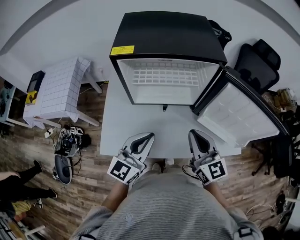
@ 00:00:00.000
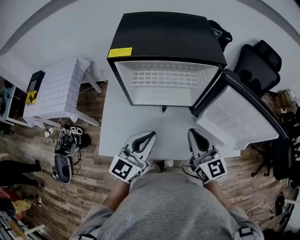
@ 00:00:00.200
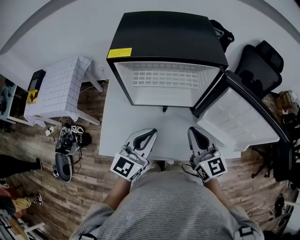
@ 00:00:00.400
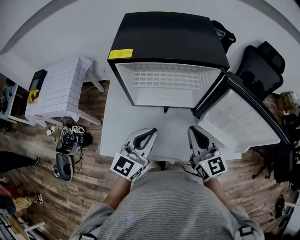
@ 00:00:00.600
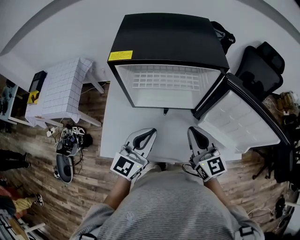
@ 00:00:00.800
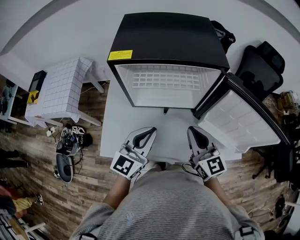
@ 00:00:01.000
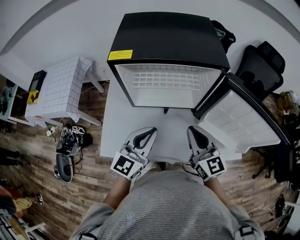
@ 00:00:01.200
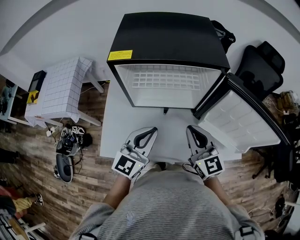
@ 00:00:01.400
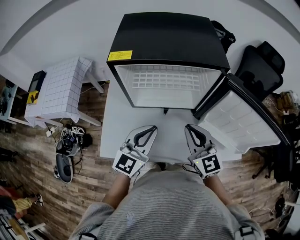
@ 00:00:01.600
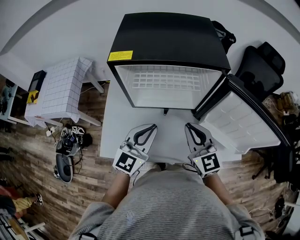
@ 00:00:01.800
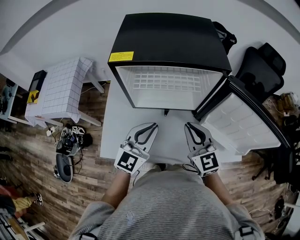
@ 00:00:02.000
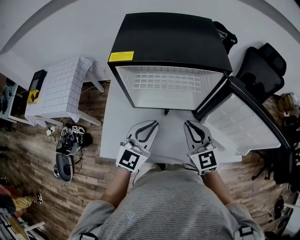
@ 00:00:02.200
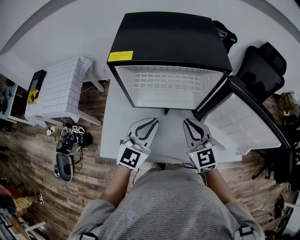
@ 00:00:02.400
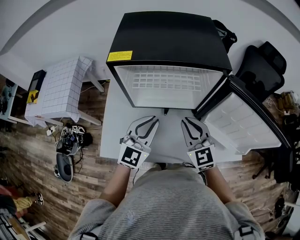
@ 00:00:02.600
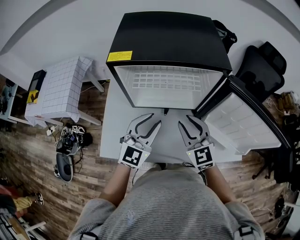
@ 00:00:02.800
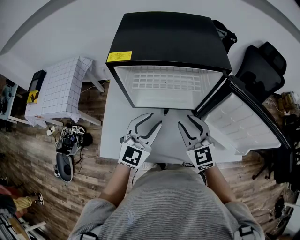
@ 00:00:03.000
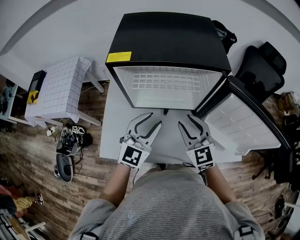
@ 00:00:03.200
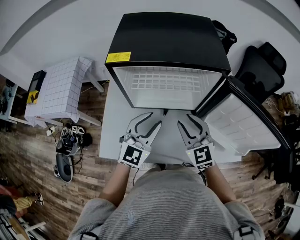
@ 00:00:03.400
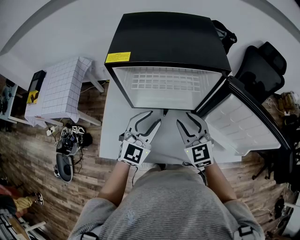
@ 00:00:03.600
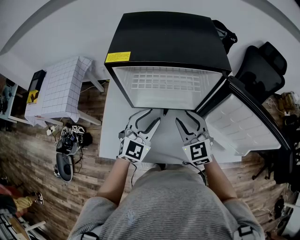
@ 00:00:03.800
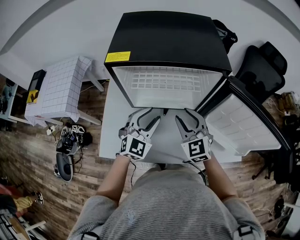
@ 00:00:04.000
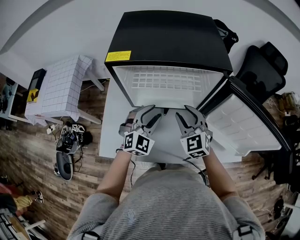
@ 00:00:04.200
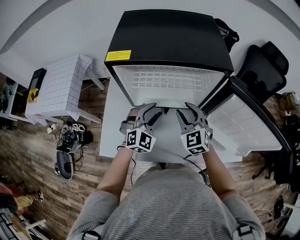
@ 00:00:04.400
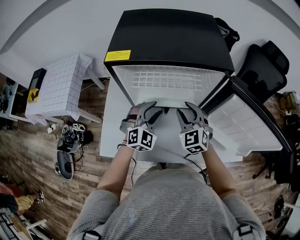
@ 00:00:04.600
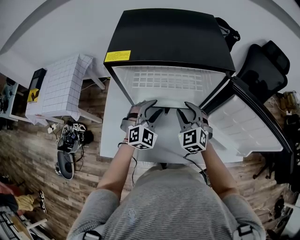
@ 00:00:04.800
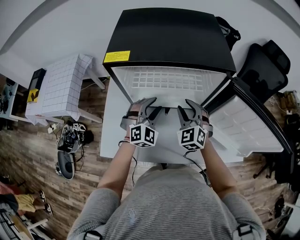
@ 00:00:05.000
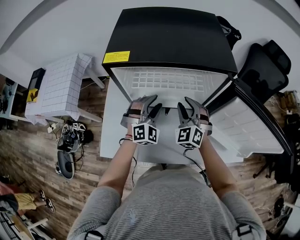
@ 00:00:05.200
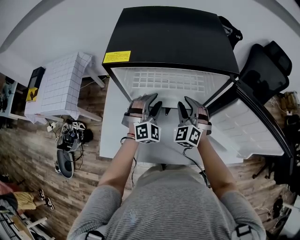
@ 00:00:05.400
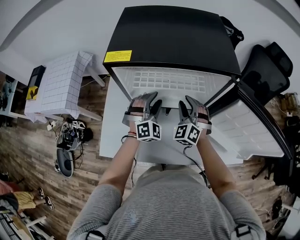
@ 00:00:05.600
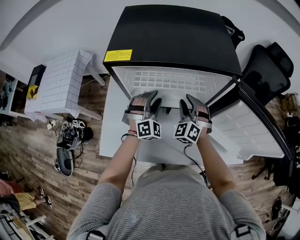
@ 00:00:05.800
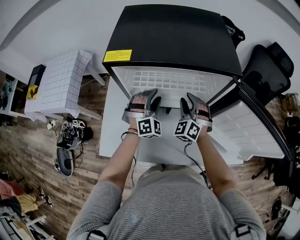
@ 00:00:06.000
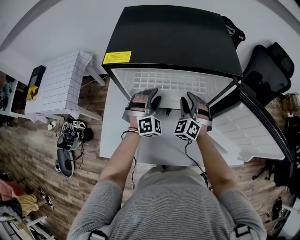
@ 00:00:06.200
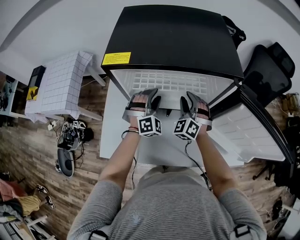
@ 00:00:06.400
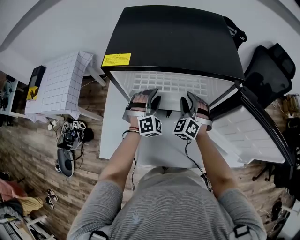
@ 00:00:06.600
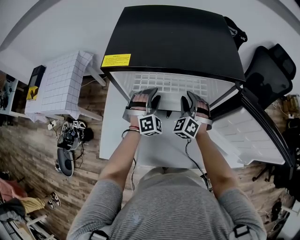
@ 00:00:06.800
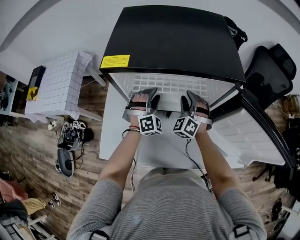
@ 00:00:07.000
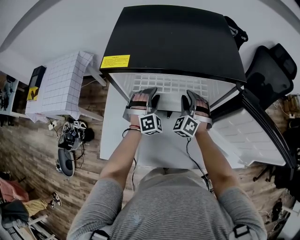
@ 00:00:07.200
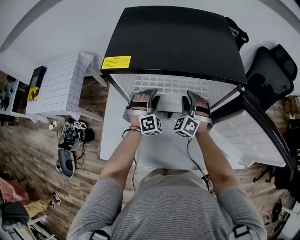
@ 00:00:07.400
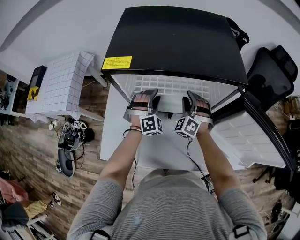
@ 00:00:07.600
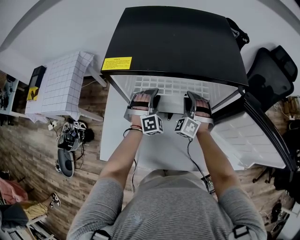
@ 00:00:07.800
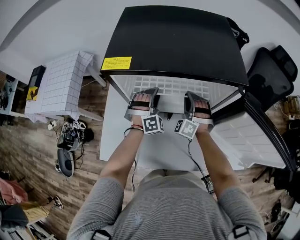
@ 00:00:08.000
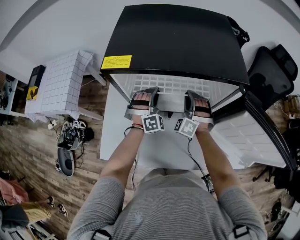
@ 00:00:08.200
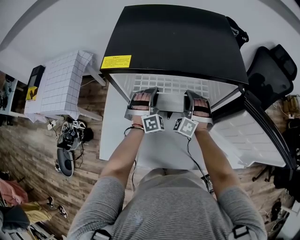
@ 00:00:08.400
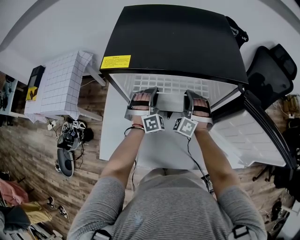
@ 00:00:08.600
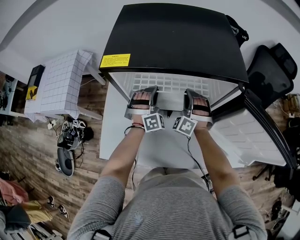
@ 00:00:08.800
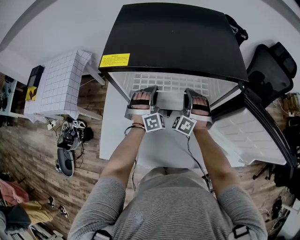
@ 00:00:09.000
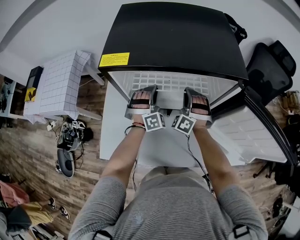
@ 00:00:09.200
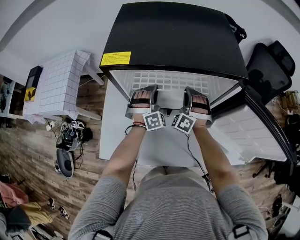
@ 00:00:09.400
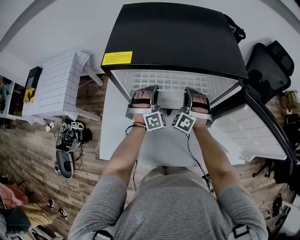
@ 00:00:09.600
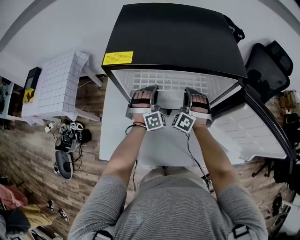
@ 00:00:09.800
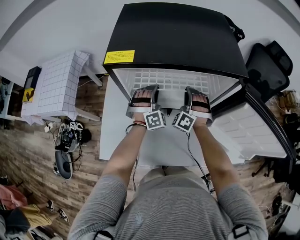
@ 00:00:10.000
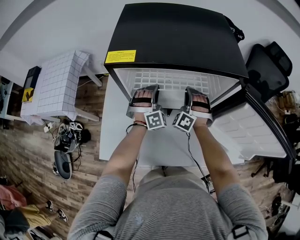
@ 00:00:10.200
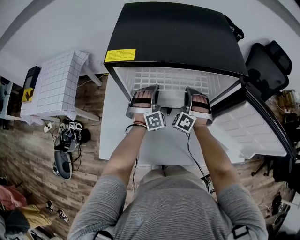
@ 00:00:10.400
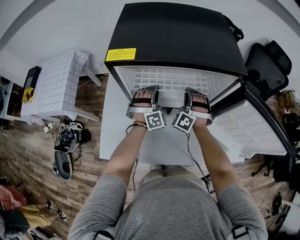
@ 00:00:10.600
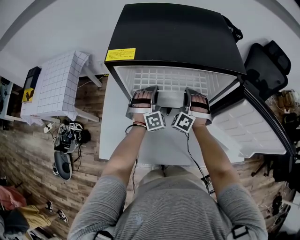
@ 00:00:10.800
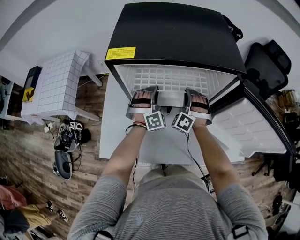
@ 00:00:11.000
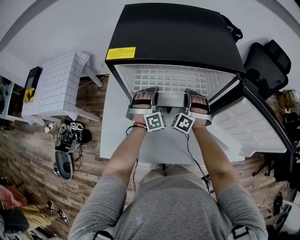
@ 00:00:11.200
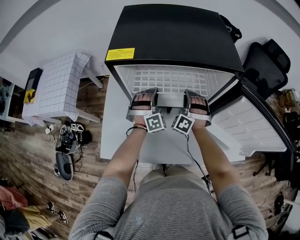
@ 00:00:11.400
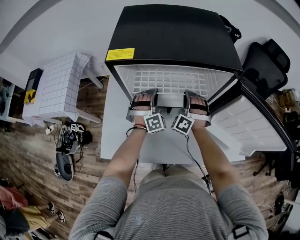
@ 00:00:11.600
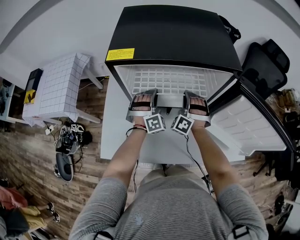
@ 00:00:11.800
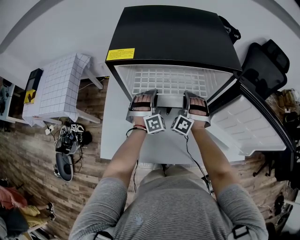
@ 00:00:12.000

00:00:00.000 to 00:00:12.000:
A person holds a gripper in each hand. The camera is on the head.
00:00:00.000 to 00:00:01.600: The right gripper shifts by some 5 cm. Meanwhile the left gripper shifts approximately 5 cm forward.
00:00:01.600 to 00:00:03.000: The right gripper opens. Meanwhile the left gripper opens.
00:00:03.000 to 00:00:04.400: The left gripper shifts some 10 cm downward and forward, and rotates roughly 30 degrees. The right gripper goes roughly 5 cm forward.
00:00:04.400 to 00:00:06.000: The two grippers go some 10 cm forward. The right gripper rotates approximately 30 degrees; the left gripper swivels roughly 20 degrees.
00:00:06.000 to 00:00:07.600: The left gripper ends up approximately 5 cm from where it was. Meanwhile the right gripper moves about 5 cm.
00:00:07.600 to 00:00:09.000: The left gripper closes up.
00:00:09.000 to 00:00:10.400: Neither gripper changes place.
00:00:10.400 to 00:00:12.000: The grippers stay close to where they were, moving slightly.

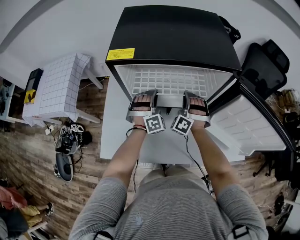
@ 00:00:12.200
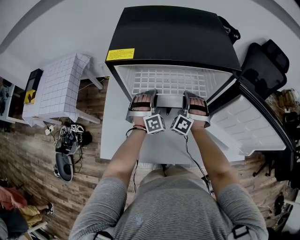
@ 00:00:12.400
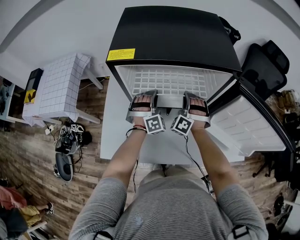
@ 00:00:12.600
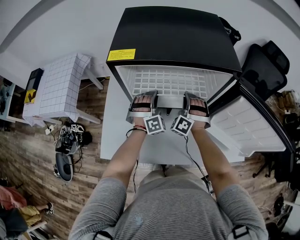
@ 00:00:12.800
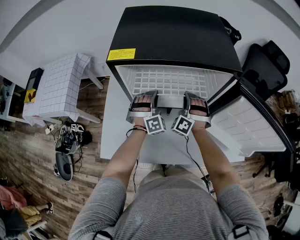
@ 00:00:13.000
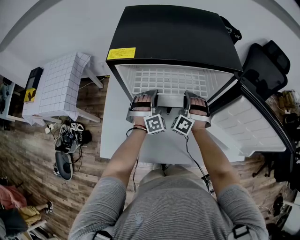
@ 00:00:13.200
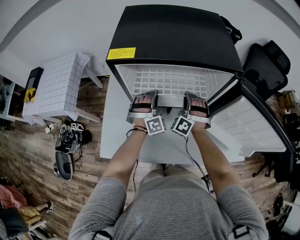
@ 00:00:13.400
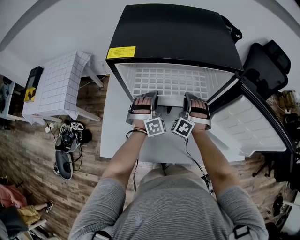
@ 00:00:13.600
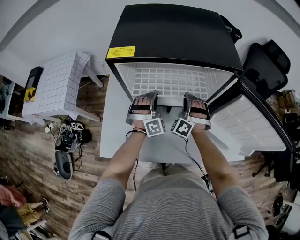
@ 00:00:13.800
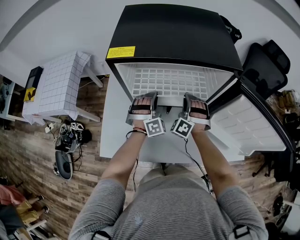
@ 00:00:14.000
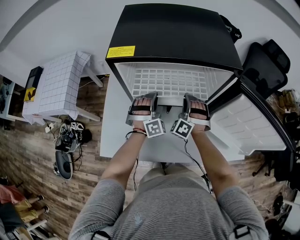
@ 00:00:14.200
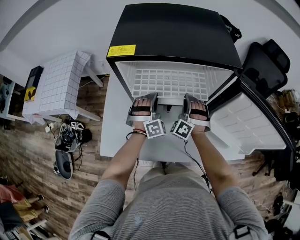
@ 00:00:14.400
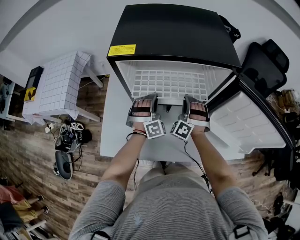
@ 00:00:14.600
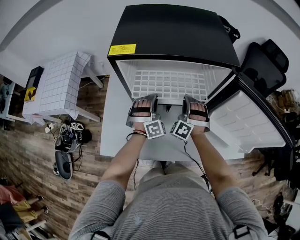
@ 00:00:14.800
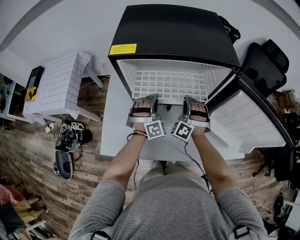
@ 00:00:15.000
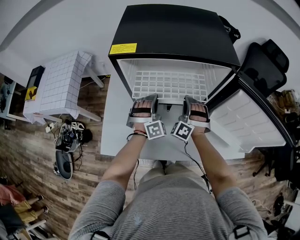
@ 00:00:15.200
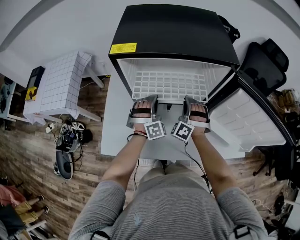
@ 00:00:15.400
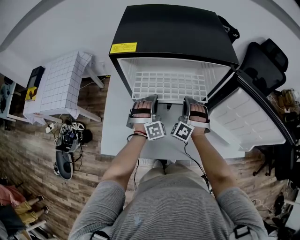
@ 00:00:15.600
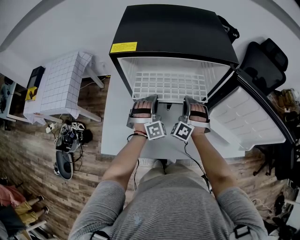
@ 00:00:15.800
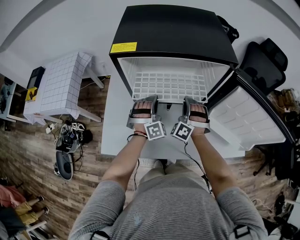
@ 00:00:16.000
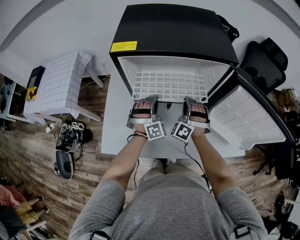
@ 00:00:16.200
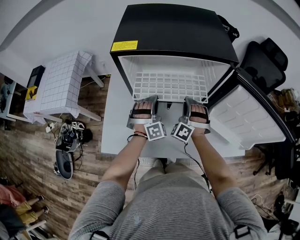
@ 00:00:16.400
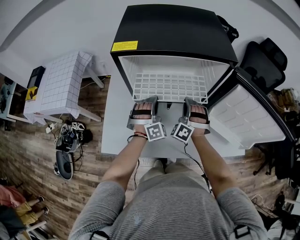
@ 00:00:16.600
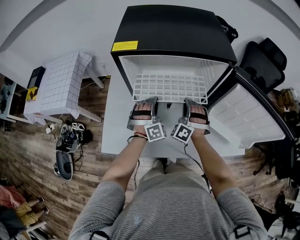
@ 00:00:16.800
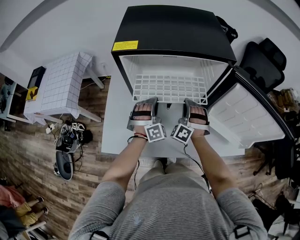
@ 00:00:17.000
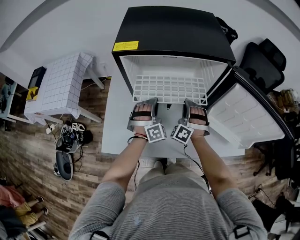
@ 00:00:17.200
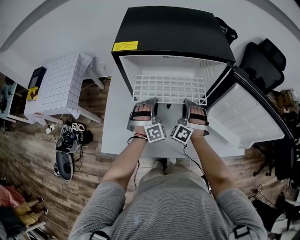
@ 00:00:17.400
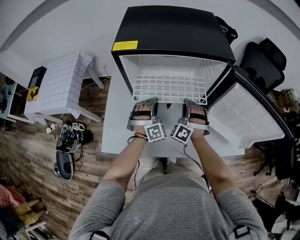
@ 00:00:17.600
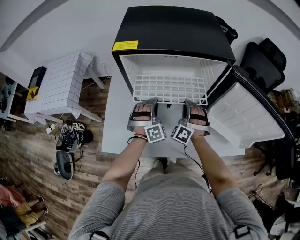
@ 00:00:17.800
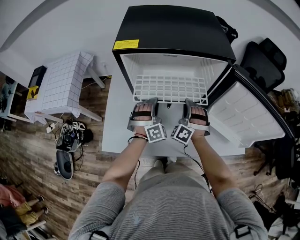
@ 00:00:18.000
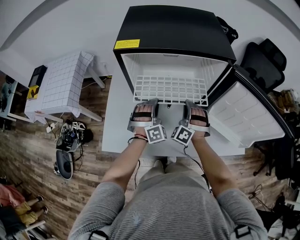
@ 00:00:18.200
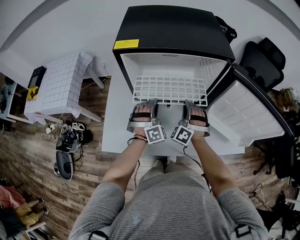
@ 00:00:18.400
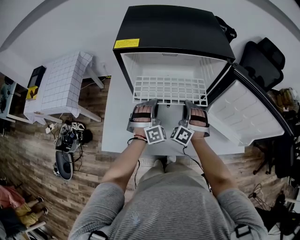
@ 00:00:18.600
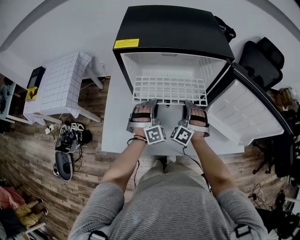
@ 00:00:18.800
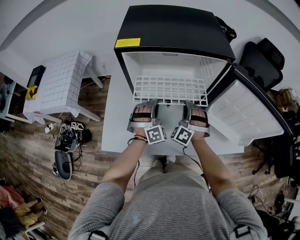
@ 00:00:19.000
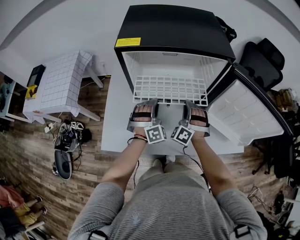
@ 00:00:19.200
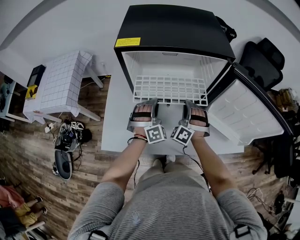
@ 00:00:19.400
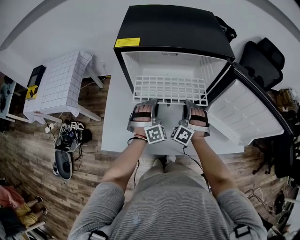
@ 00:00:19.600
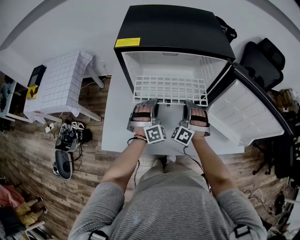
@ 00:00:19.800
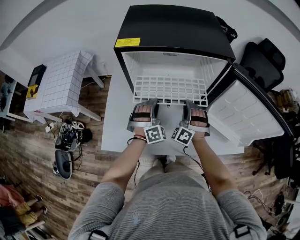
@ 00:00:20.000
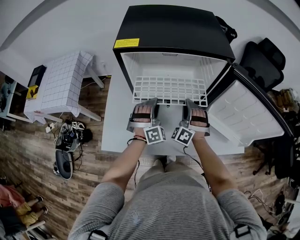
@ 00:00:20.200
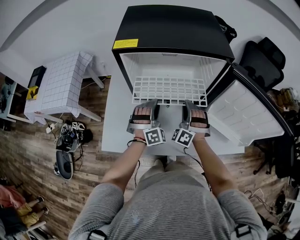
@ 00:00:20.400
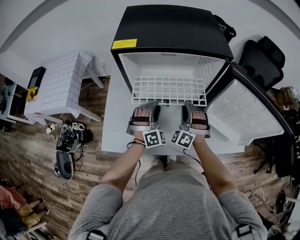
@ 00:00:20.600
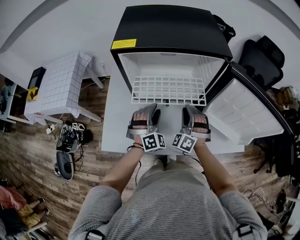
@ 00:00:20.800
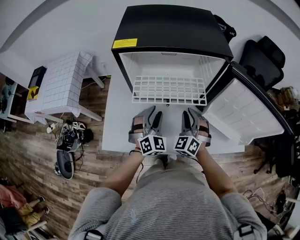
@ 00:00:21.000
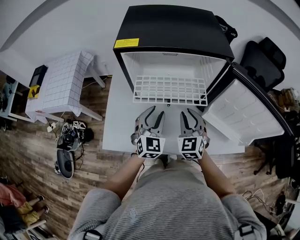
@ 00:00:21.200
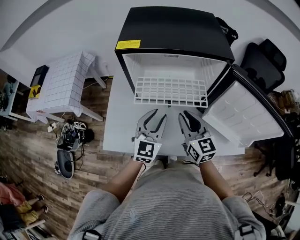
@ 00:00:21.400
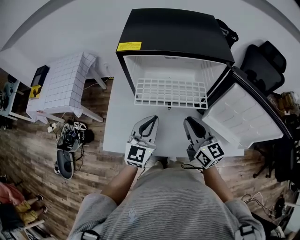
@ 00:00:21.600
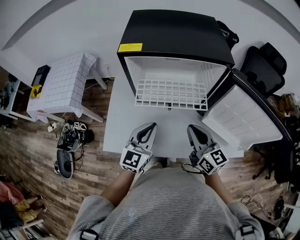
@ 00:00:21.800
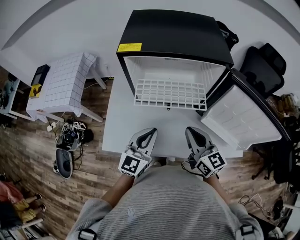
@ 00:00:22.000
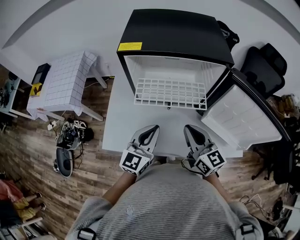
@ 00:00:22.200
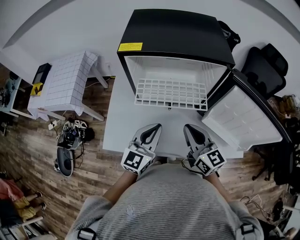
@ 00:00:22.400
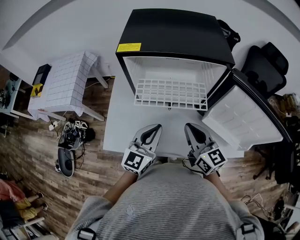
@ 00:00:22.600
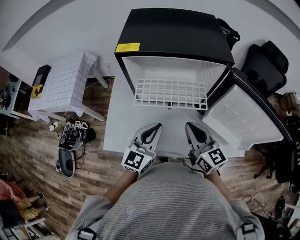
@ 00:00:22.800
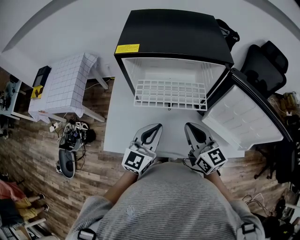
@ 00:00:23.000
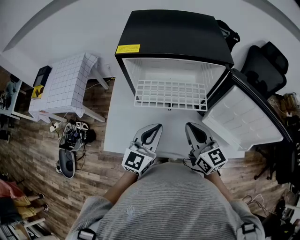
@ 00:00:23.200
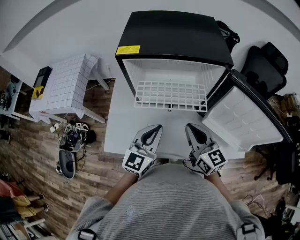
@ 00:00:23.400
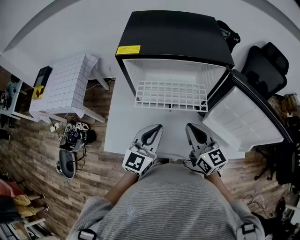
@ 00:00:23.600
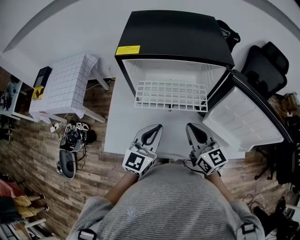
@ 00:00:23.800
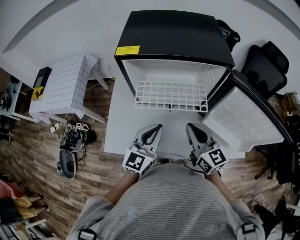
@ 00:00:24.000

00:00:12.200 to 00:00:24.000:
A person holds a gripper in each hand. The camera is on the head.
00:00:12.200 to 00:00:15.200: The grippers move only a little.
00:00:15.200 to 00:00:18.200: The grippers stay close to where they were, moving slightly.
00:00:18.200 to 00:00:19.600: Both grippers stay about where they are.
00:00:19.600 to 00:00:21.000: The left gripper shifts by roughly 5 cm, changes its angle by approximately 30 degrees, and opens its fingers. The right gripper changes place by about 5 cm, and turns by roughly 30 degrees.
00:00:21.000 to 00:00:22.600: The grippers both shift upward and backward by roughly 10 cm. The left gripper rolls counterclockwise, seen from behind, by approximately 40 degrees, and closes, while the right gripper twists roughly 60 degrees clockwise, seen from behind, and closes.
00:00:22.600 to 00:00:24.000: There are only small adjustments of the grippers.
